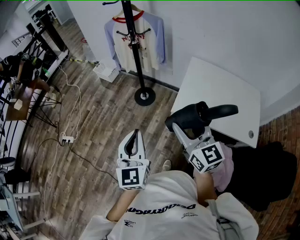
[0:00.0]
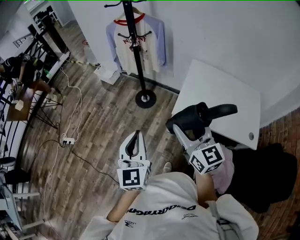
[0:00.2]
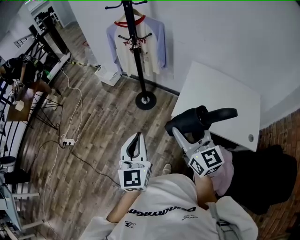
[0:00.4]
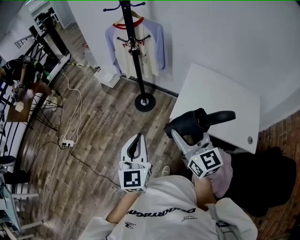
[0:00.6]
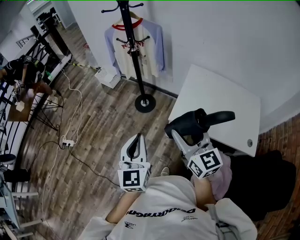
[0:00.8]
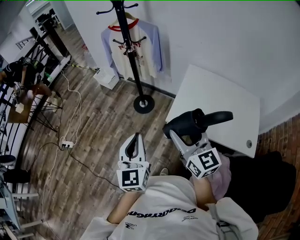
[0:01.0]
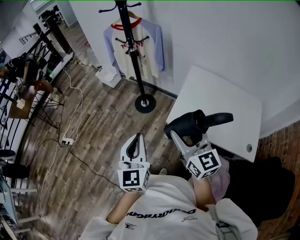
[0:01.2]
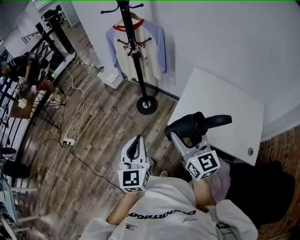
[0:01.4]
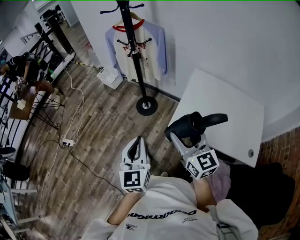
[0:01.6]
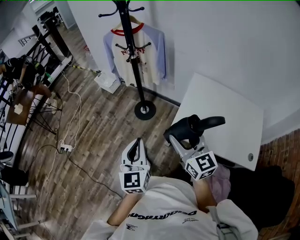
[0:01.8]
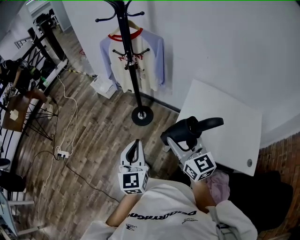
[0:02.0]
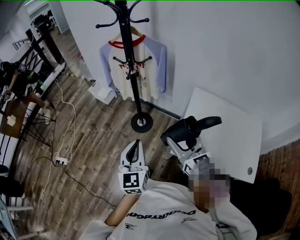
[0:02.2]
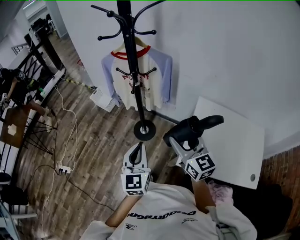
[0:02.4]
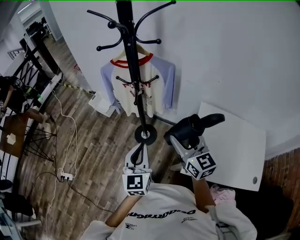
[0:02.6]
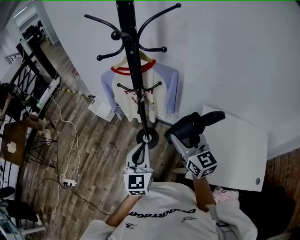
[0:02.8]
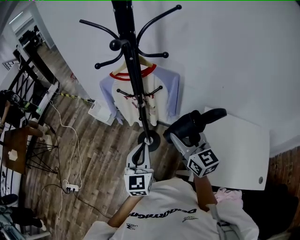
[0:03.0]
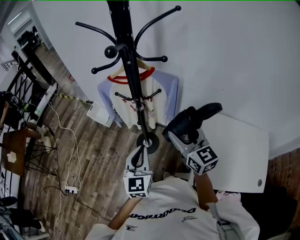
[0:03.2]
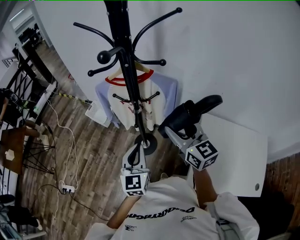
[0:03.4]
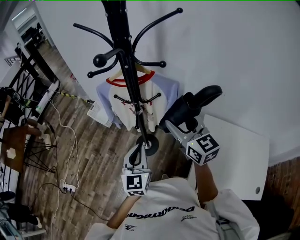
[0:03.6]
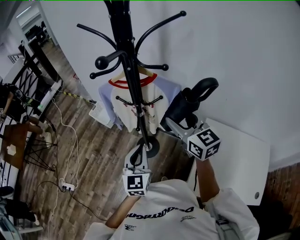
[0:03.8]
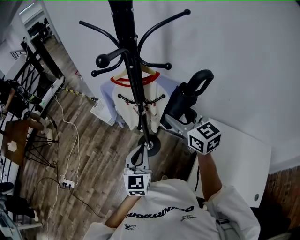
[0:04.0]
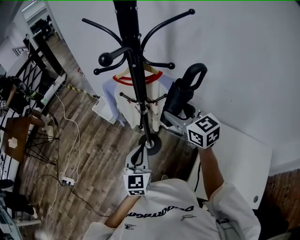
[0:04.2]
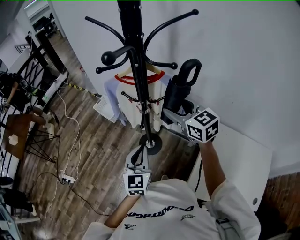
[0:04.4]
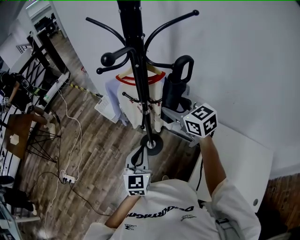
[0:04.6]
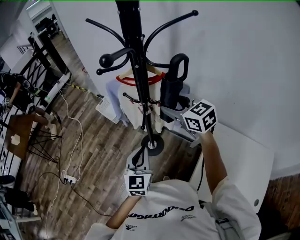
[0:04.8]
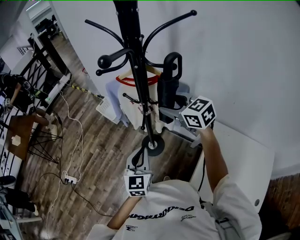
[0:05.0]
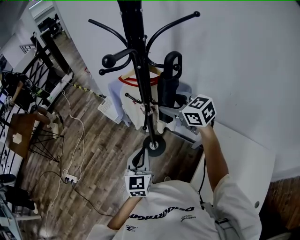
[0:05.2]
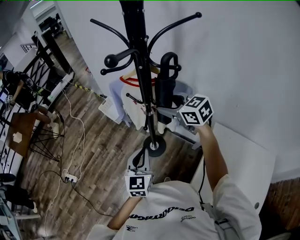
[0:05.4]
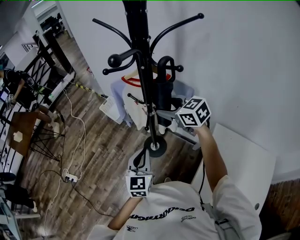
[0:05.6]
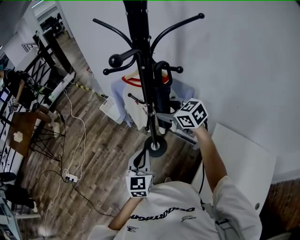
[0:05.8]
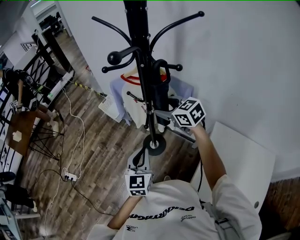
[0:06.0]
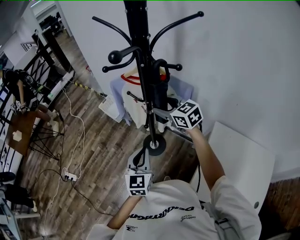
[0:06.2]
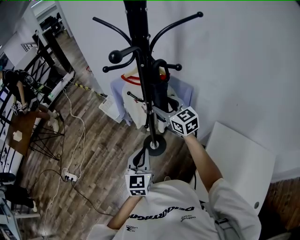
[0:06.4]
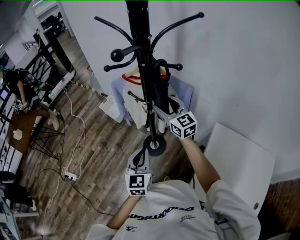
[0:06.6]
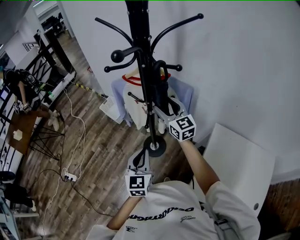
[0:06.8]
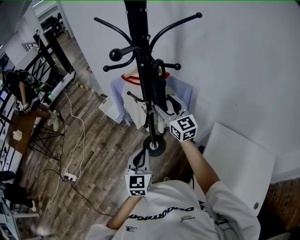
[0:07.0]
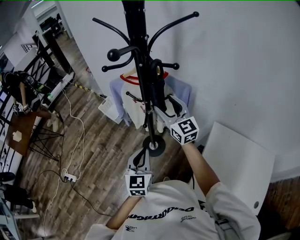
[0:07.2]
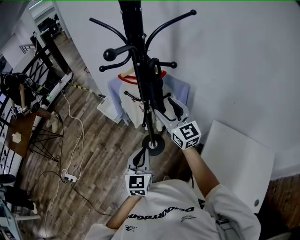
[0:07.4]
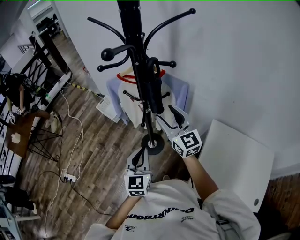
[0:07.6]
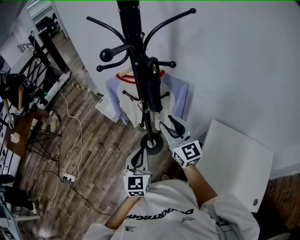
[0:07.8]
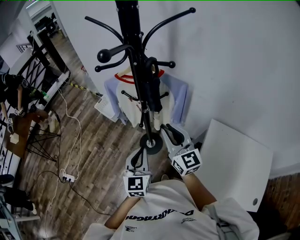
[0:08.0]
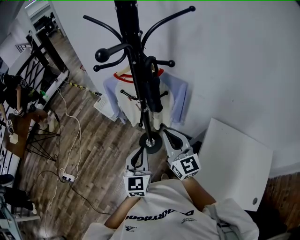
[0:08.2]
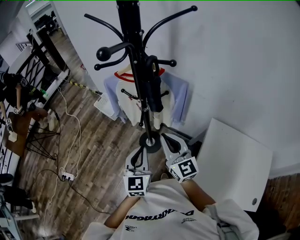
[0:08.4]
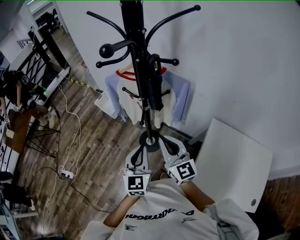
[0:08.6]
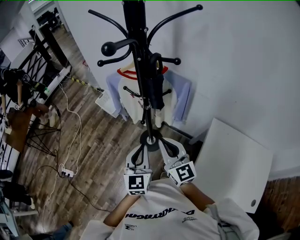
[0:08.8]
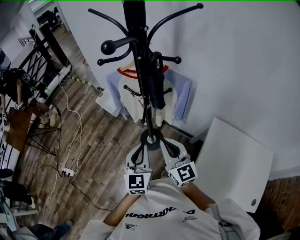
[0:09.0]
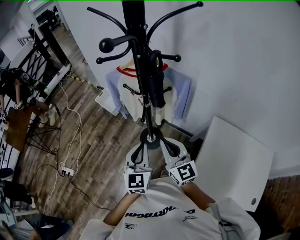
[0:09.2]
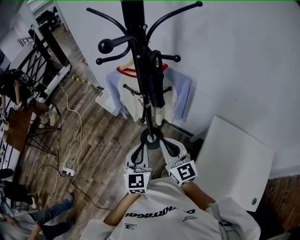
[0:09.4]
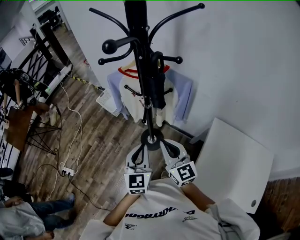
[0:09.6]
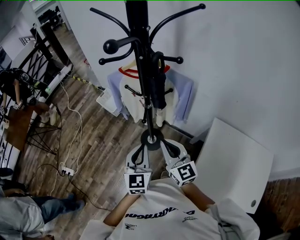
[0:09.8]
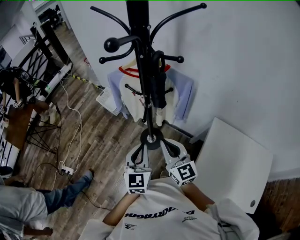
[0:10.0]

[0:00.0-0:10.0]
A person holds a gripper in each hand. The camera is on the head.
0:00.0 to 0:01.4: Both grippers travel together to the right, some 5 cm.
0:01.4 to 0:02.8: The pair of grippers is taken forward, approximately 40 cm.
0:02.8 to 0:04.2: The right gripper travels forward by roughly 15 cm, while the left gripper goes approximately 5 cm forward.
0:04.2 to 0:05.8: The right gripper travels downward and forward by some 10 cm, and changes its angle by about 20 degrees.
0:05.8 to 0:07.2: The right gripper tips its fingers upward by about 30 degrees.
0:07.2 to 0:08.6: The right gripper moves backward, roughly 15 cm, and closes its fingers.
0:08.6 to 0:10.0: The grippers make only small movements.

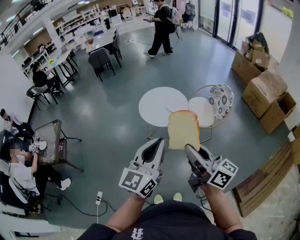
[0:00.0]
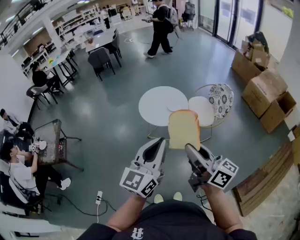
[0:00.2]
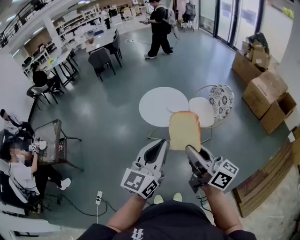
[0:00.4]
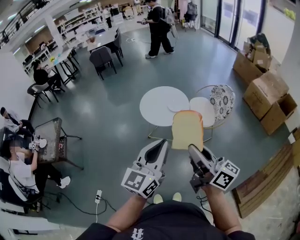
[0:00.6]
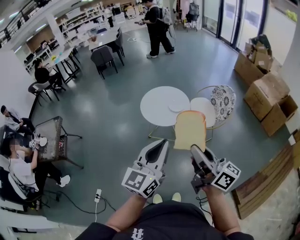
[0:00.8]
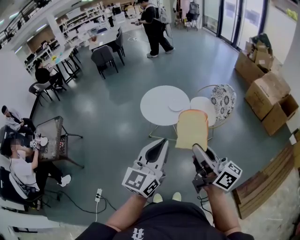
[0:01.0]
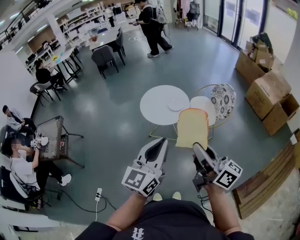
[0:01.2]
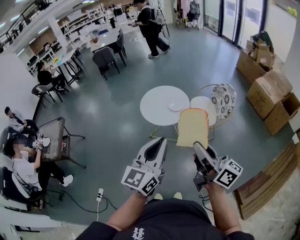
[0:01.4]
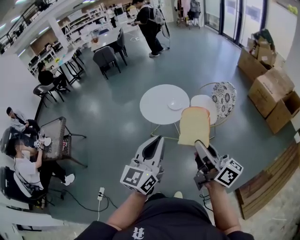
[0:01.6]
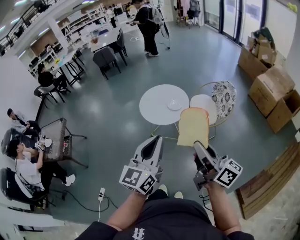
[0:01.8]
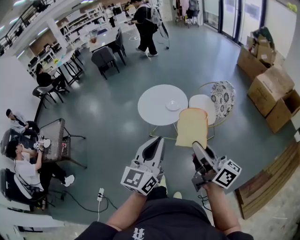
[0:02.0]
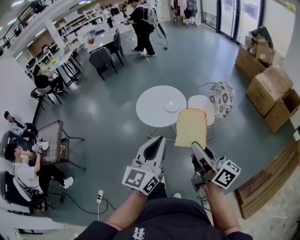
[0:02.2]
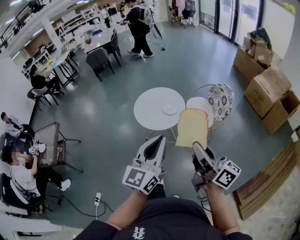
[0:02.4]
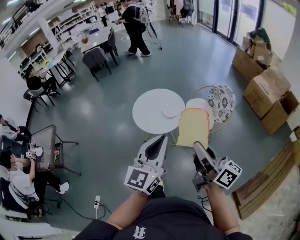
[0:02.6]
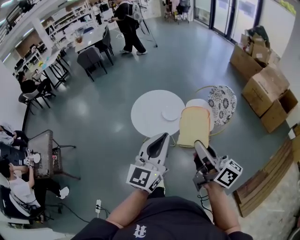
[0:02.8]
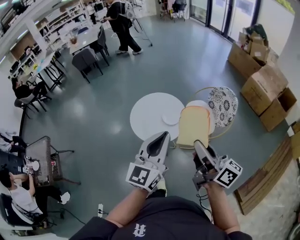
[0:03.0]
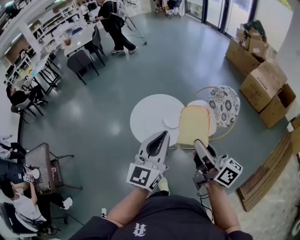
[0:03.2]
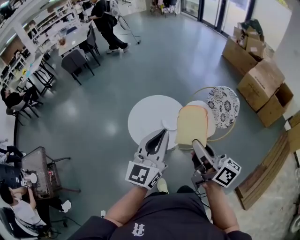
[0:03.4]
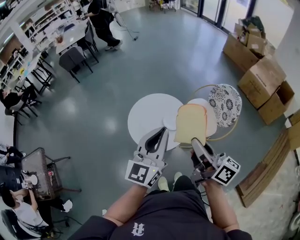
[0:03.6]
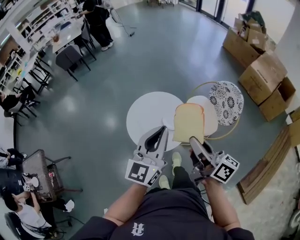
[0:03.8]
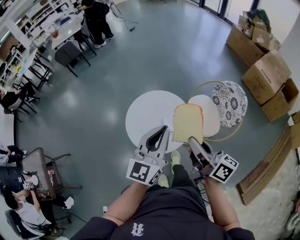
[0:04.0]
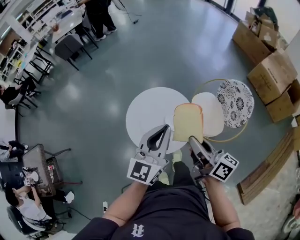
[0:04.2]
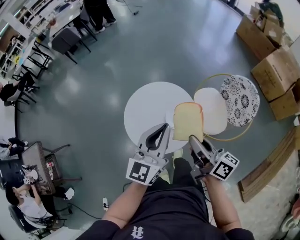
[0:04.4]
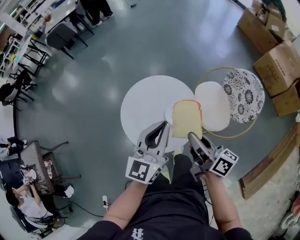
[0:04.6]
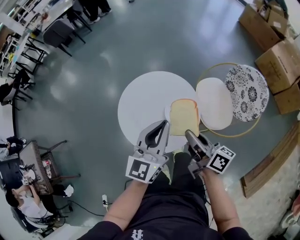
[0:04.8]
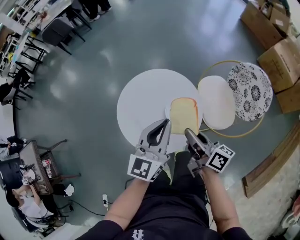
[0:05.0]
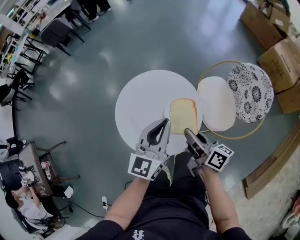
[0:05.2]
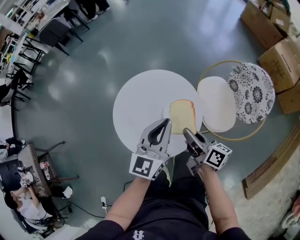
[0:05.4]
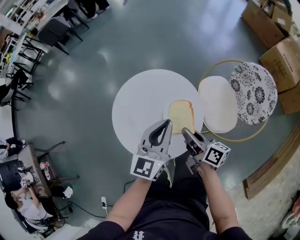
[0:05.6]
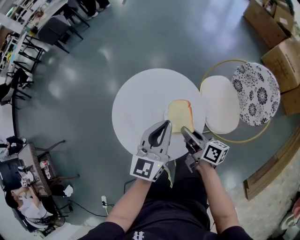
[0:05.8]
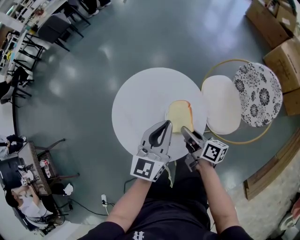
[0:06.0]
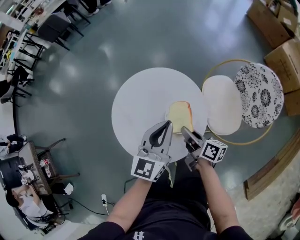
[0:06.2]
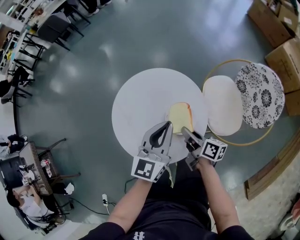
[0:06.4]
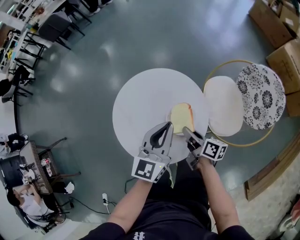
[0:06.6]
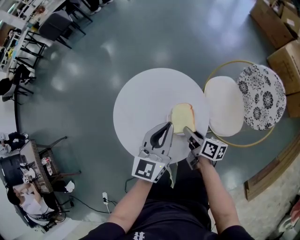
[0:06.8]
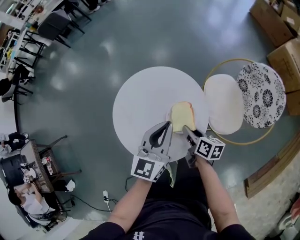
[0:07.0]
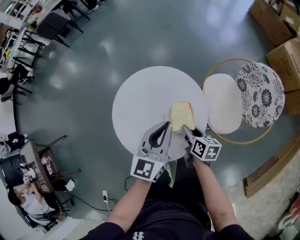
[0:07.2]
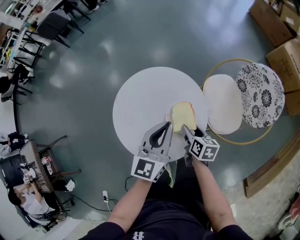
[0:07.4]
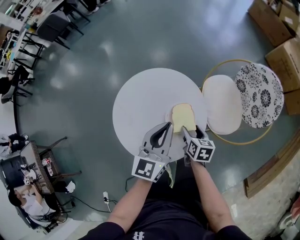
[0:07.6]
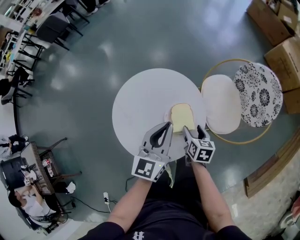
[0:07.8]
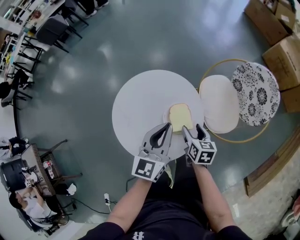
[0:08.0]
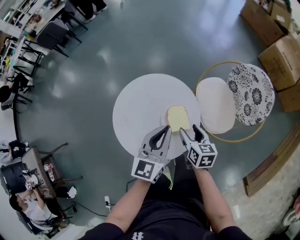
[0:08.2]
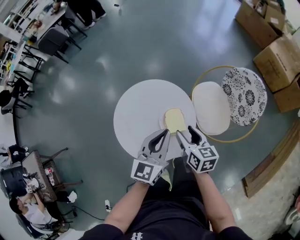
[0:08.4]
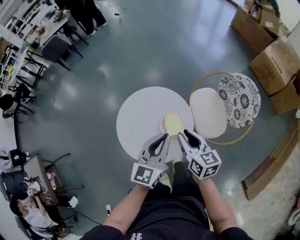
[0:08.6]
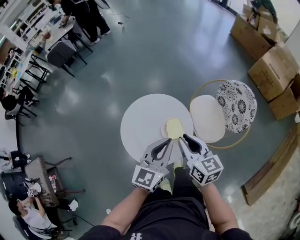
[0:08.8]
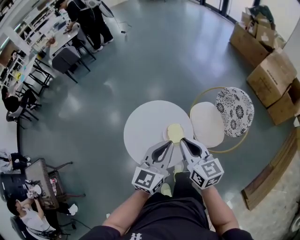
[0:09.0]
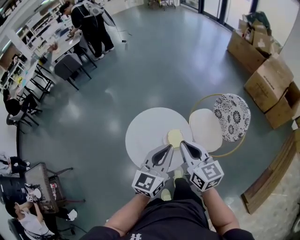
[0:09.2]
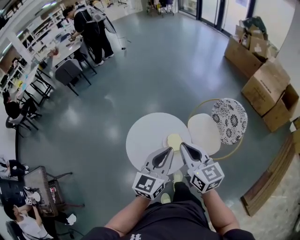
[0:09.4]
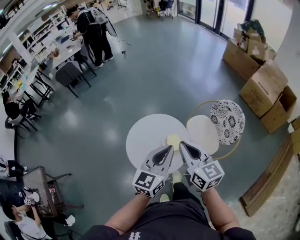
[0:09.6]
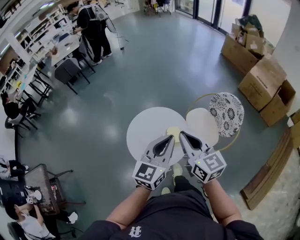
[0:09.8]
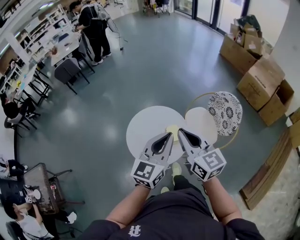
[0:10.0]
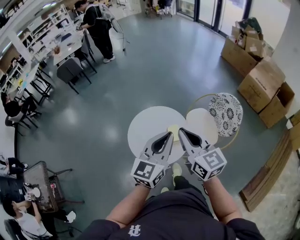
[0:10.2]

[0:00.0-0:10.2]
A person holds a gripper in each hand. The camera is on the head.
0:00.0 to 0:01.4: The right gripper travels to the right by approximately 5 cm.
0:01.4 to 0:03.0: Both grippers travel together forward, some 25 cm.
0:03.0 to 0:04.4: The grippers both shift forward and downward by roughly 30 cm.
0:04.4 to 0:05.8: The grippers both shift downward by approximately 25 cm.
0:05.8 to 0:07.2: The right gripper travels downward by some 10 cm, and changes its angle by approximately 30 degrees.
0:07.2 to 0:08.8: The right gripper travels upward by some 30 cm, changes its angle by about 30 degrees, and opens, then closes again. The left gripper heads upward and backward, covering roughly 15 cm.
0:08.8 to 0:10.2: Both grippers move upward and backward, some 20 cm.

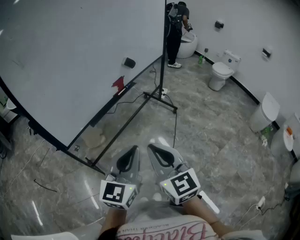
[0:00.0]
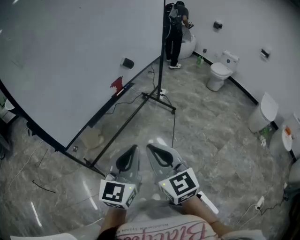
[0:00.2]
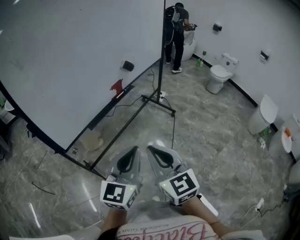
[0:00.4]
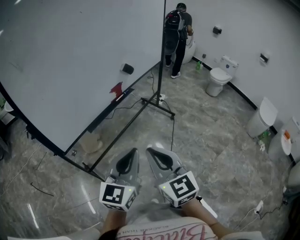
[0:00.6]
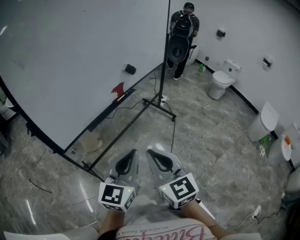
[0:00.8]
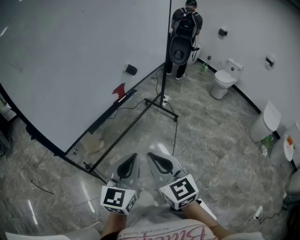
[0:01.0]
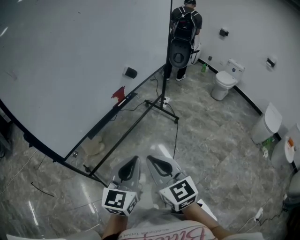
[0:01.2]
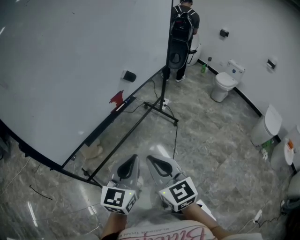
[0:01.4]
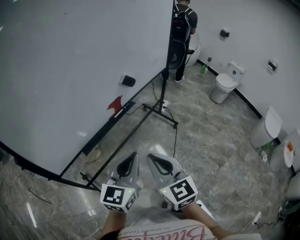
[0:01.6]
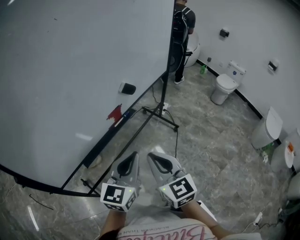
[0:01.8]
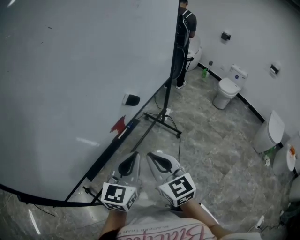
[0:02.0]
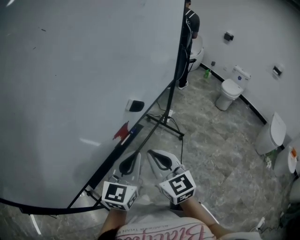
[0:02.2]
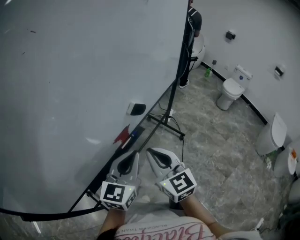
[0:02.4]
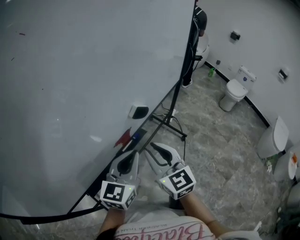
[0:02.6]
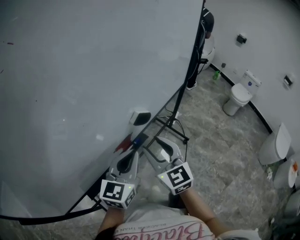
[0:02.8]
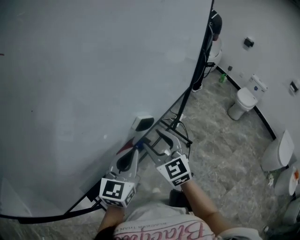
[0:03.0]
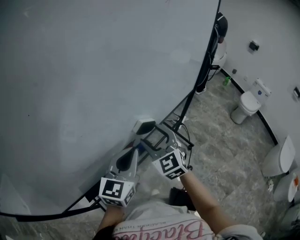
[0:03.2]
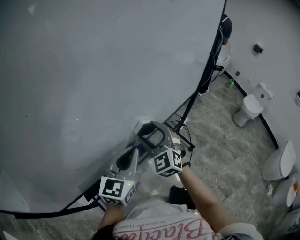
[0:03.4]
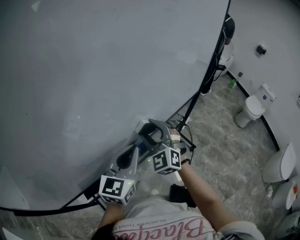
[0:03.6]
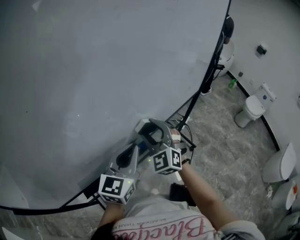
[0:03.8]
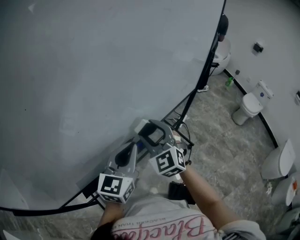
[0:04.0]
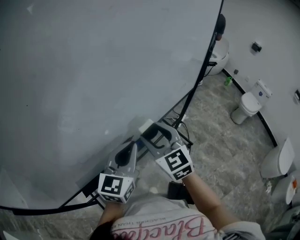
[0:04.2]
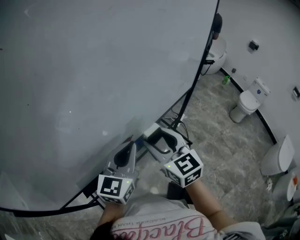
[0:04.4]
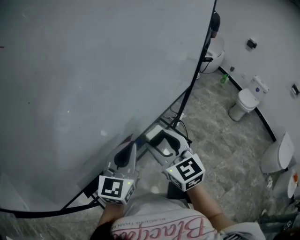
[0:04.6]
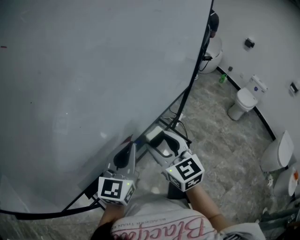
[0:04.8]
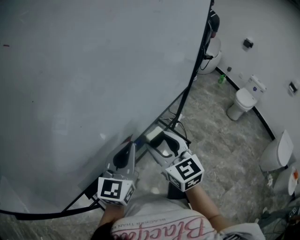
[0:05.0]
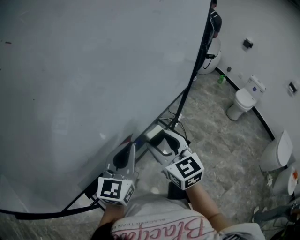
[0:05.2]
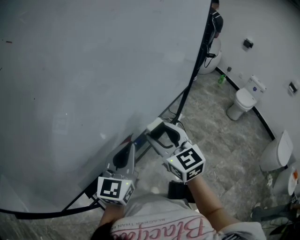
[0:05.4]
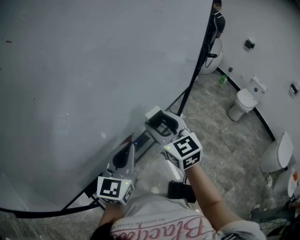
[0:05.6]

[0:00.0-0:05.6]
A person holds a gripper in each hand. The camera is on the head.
0:00.0 to 0:01.4: Both grippers move forward, roughly 10 cm.
0:01.4 to 0:02.8: The grippers both shift forward by approximately 30 cm. The right gripper opens up.
0:02.8 to 0:04.2: The right gripper travels forward by some 5 cm.
0:04.2 to 0:05.6: The grippers stay close to where they were, moving slightly.
